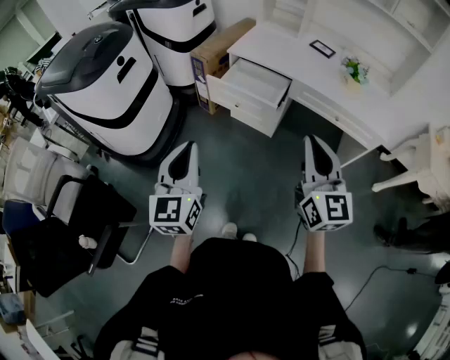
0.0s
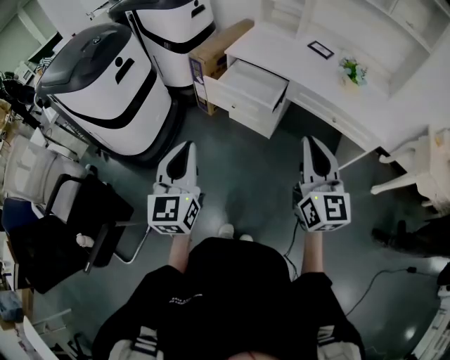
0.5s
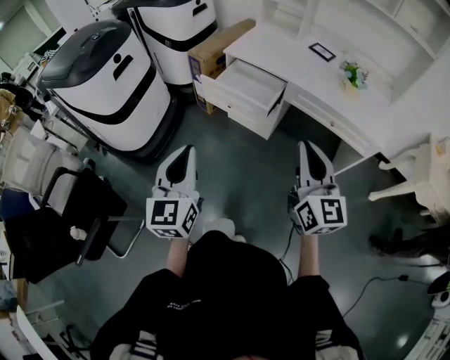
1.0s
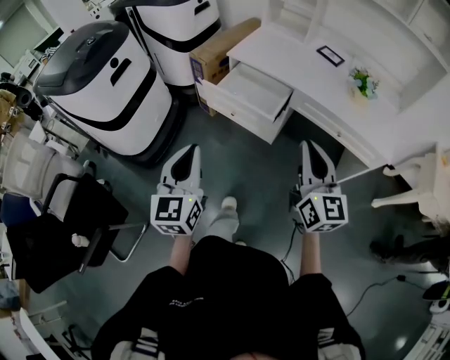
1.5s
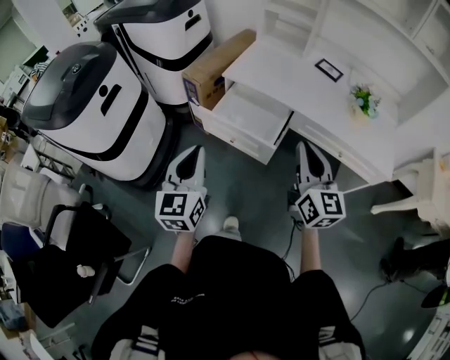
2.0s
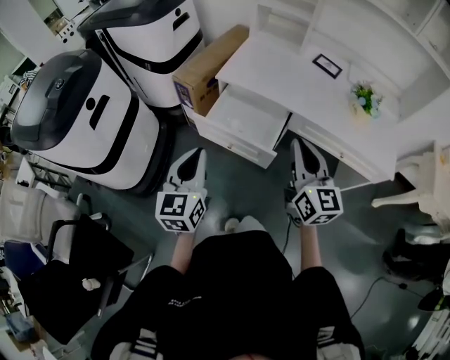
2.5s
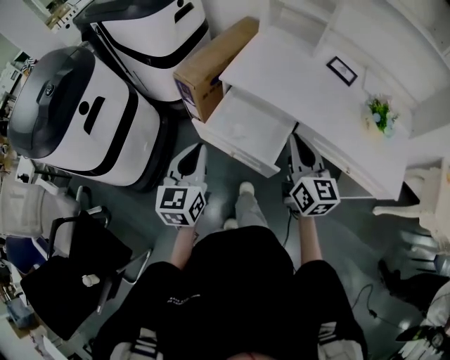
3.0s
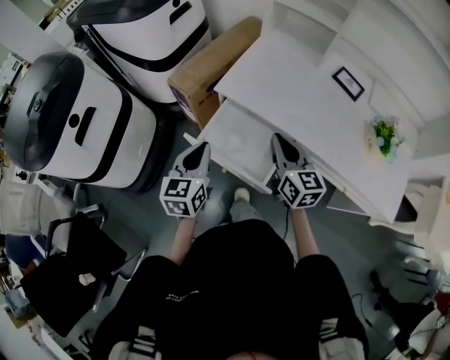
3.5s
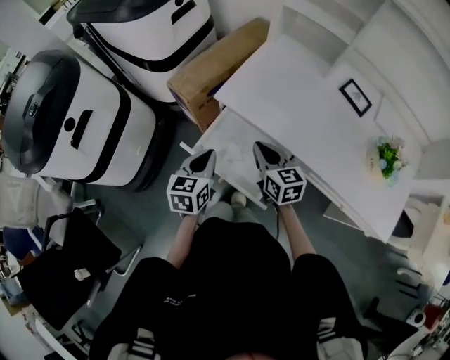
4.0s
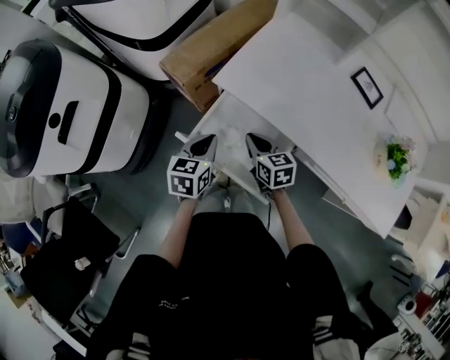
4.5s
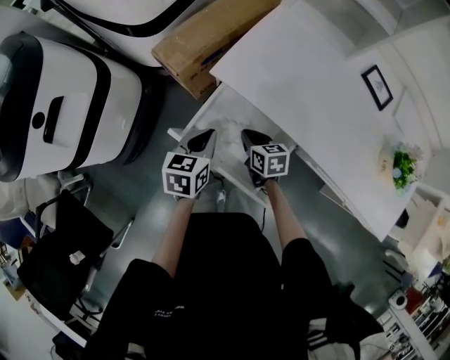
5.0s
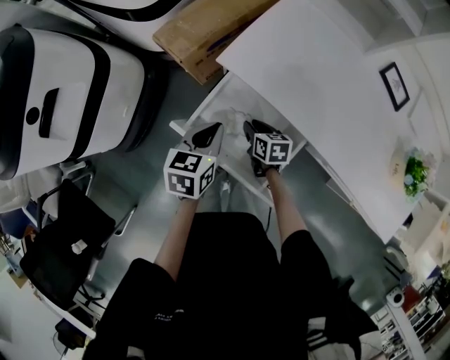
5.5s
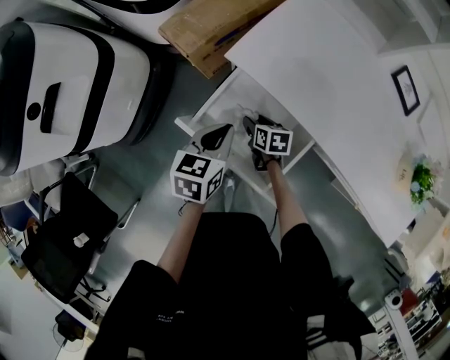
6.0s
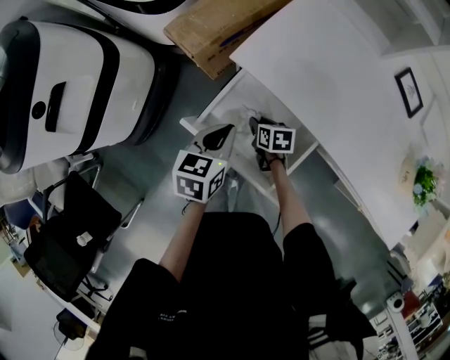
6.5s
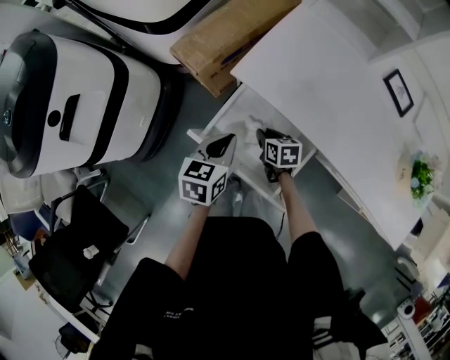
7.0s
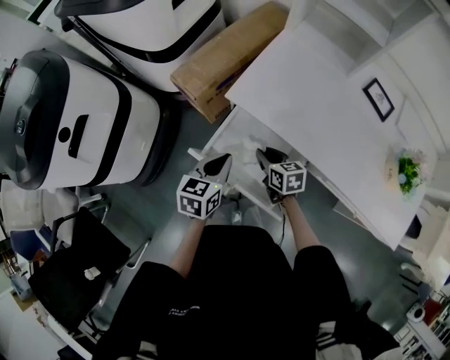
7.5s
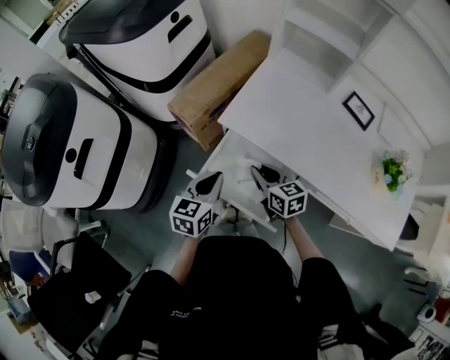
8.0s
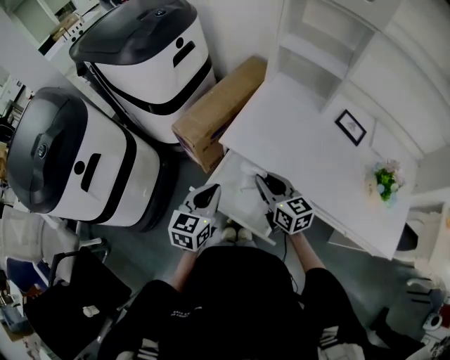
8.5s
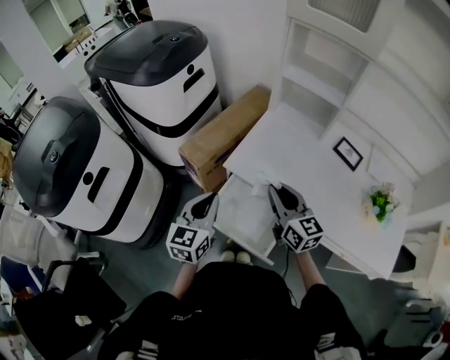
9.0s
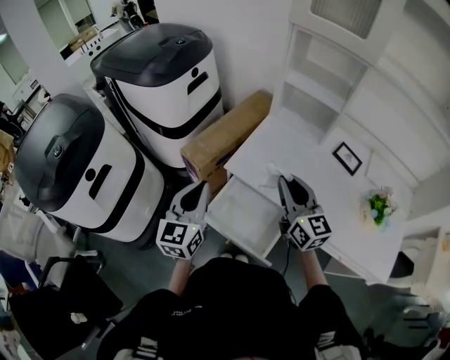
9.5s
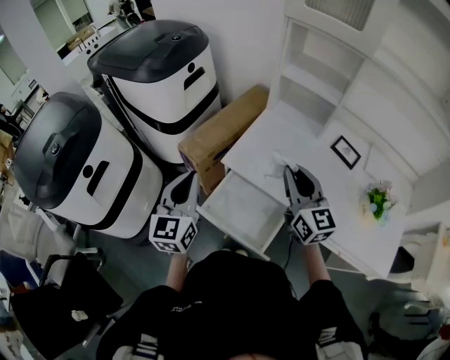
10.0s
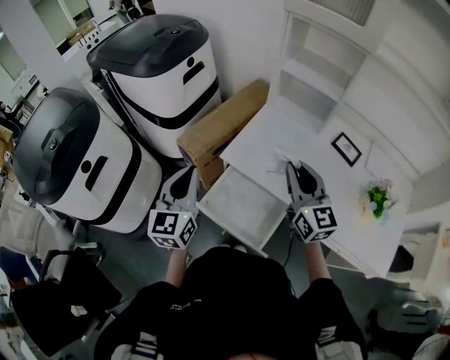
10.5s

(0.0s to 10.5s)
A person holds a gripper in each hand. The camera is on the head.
0.0s - 2.0s: The grippers both shift forward by approximately 20 cm.
2.0s - 4.0s: Both grippers move forward and downward, about 35 cm. The left gripper rotates about 30 degrees. The right gripper changes its angle by about 30 degrees.
4.0s - 6.5s: The right gripper moves downward, some 30 cm, tilts its fingers some 30 degrees downward, and opens, then closes once more; the left gripper goes roughly 10 cm downward.
6.5s - 8.5s: The left gripper heads upward, covering roughly 15 cm, and changes its angle by roughly 20 degrees. Meanwhile the right gripper shifts approximately 30 cm upward, and points its fingers roughly 40 degrees further upward.
8.5s - 10.5s: The left gripper moves upward, roughly 15 cm, and swivels approximately 30 degrees. The right gripper shifts about 20 cm upward and to the right, and changes its angle by approximately 30 degrees.

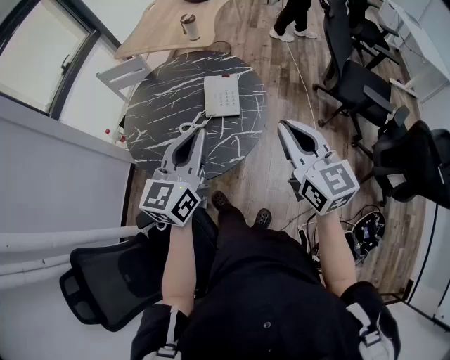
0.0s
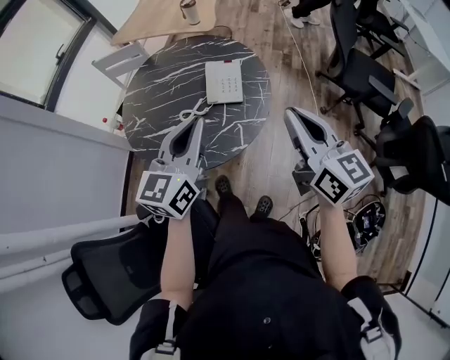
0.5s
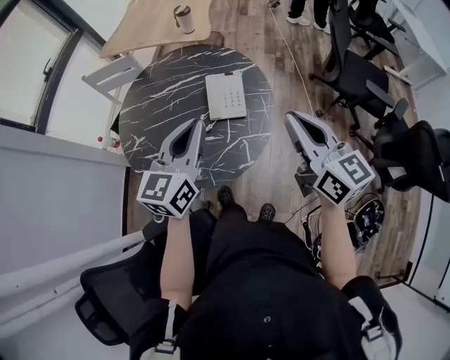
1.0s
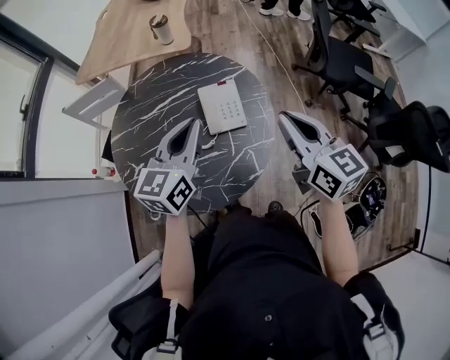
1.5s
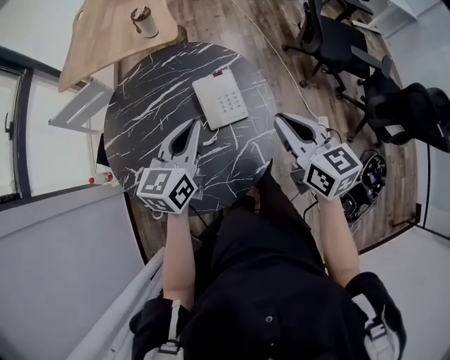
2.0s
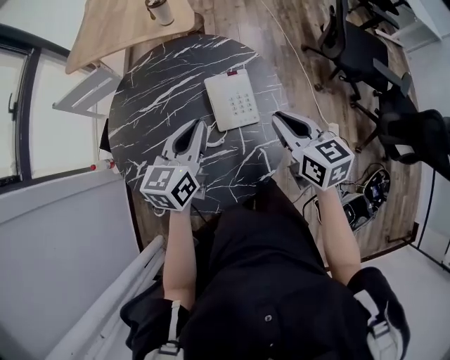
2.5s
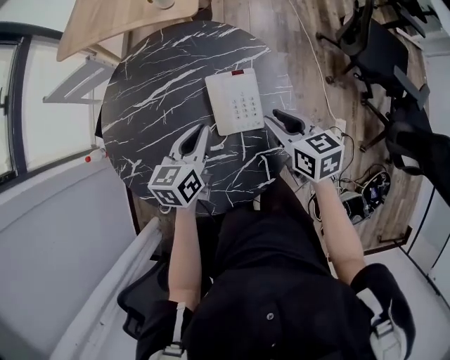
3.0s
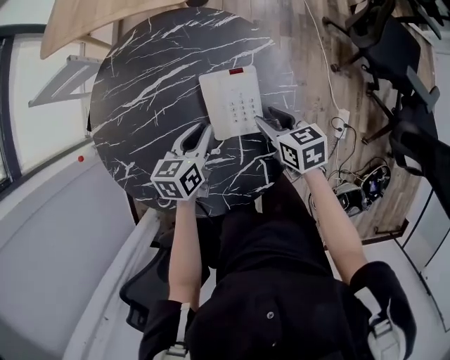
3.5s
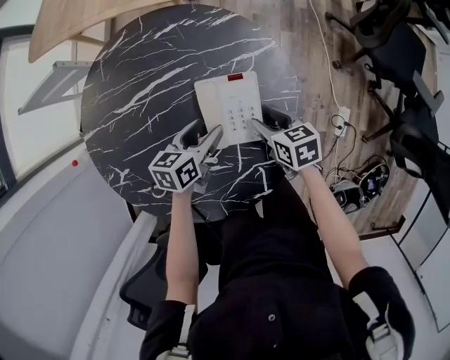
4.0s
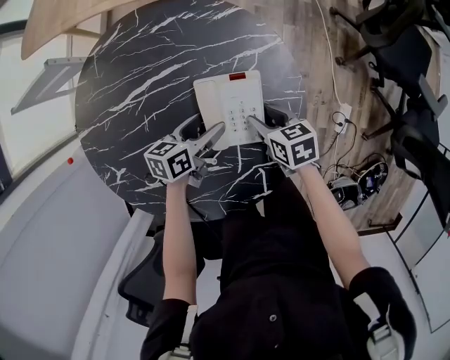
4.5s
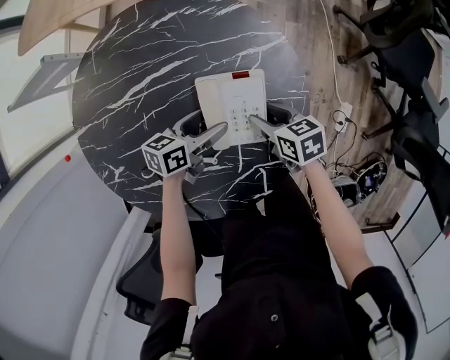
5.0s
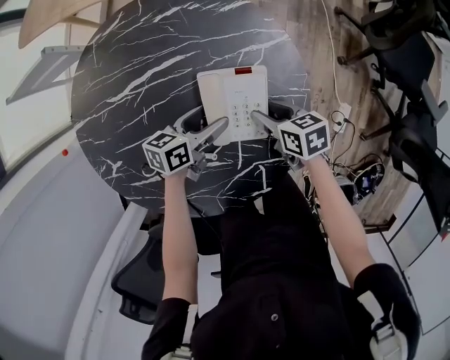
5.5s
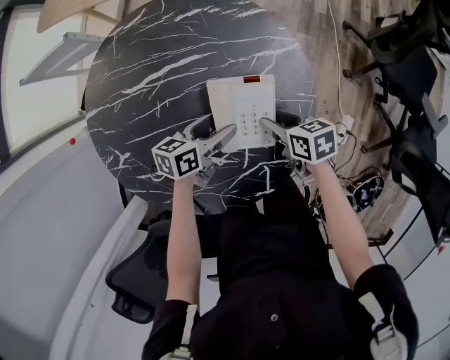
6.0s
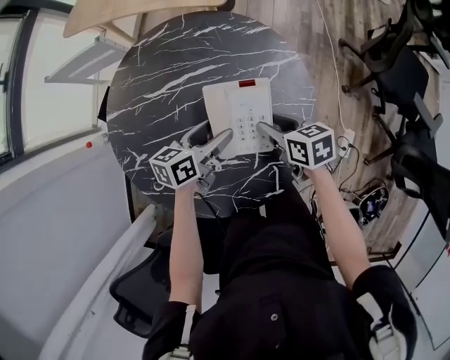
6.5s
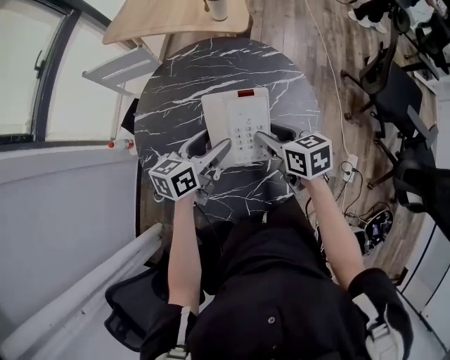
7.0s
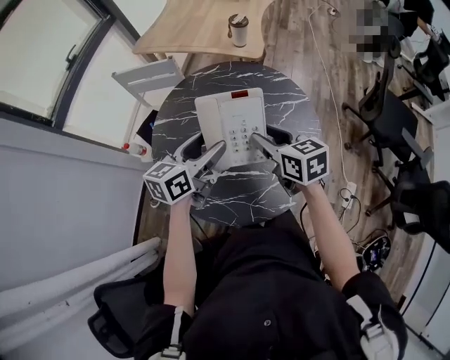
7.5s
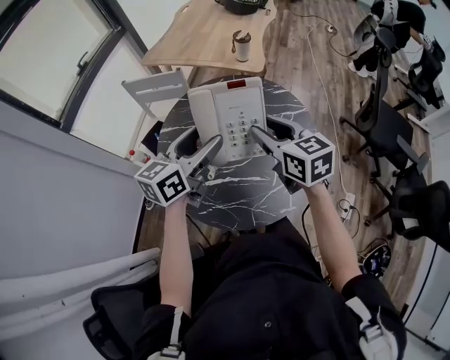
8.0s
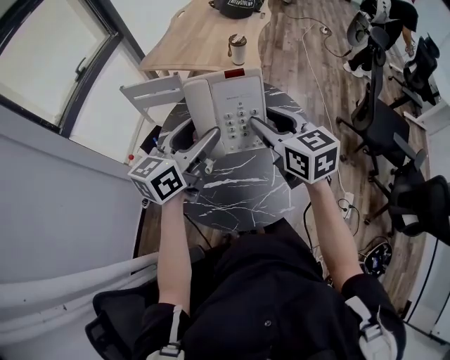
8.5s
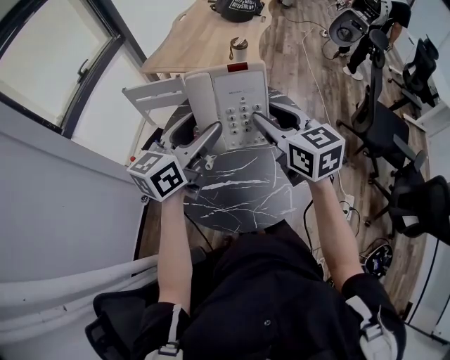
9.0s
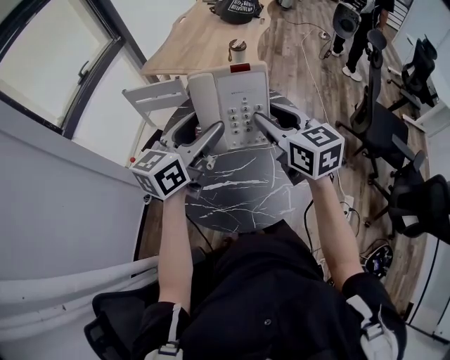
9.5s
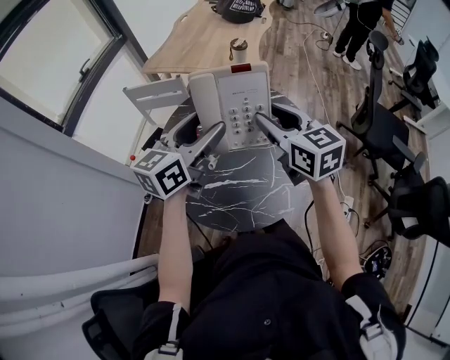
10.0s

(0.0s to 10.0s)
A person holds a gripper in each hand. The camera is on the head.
0.0s - 2.0s: Both grippers travel together forward, to the left and downward, about 25 cm. The right gripper swivels approximately 20 degrees, while the left gripper changes its angle by roughly 20 degrees.
2.0s - 4.0s: The left gripper heads downward, covering approximately 30 cm, changes its angle by approximately 40 degrees, and opens its fingers; the right gripper travels downward and forward by some 35 cm, points its fingers roughly 30 degrees further downward, and opens its fingers.
4.0s - 6.0s: The grippers stay close to where they were, moving slightly.
6.0s - 8.0s: The grippers both shift upward and to the left by roughly 40 cm. The right gripper swivels approximately 40 degrees. The left gripper turns by approximately 40 degrees.
8.0s - 10.0s: The two grippers go approximately 5 cm upward.

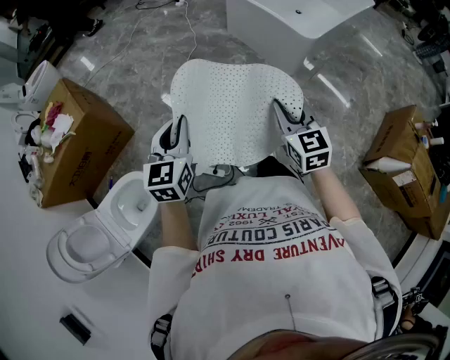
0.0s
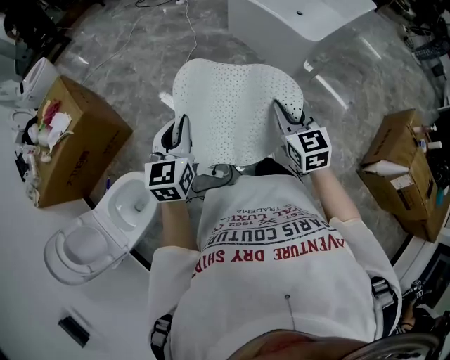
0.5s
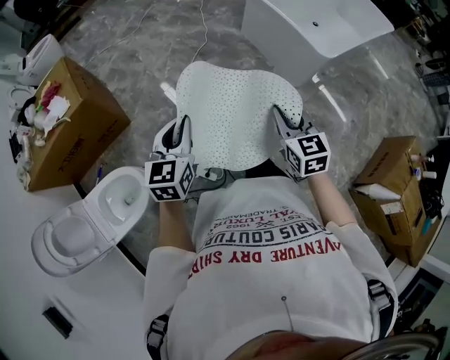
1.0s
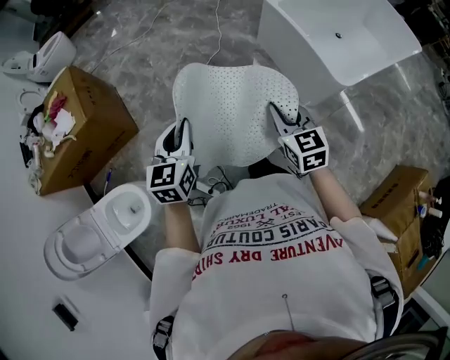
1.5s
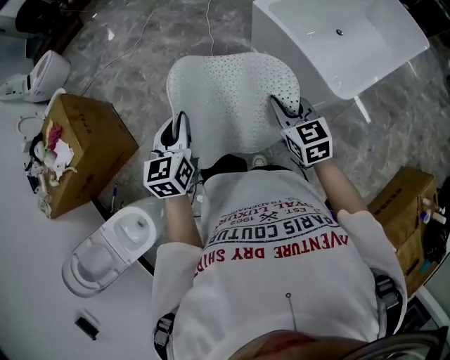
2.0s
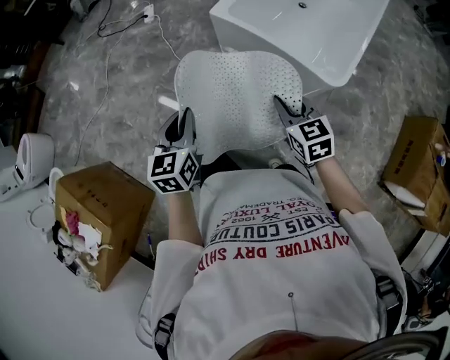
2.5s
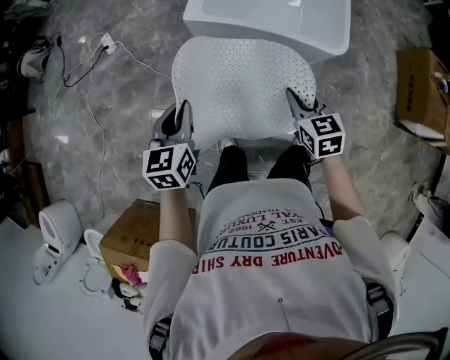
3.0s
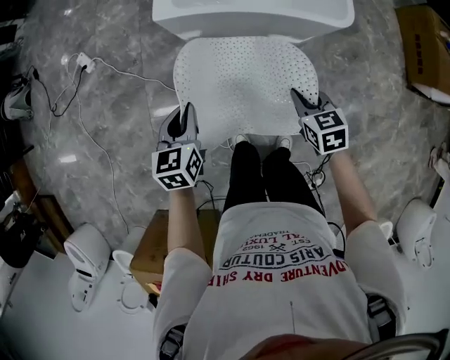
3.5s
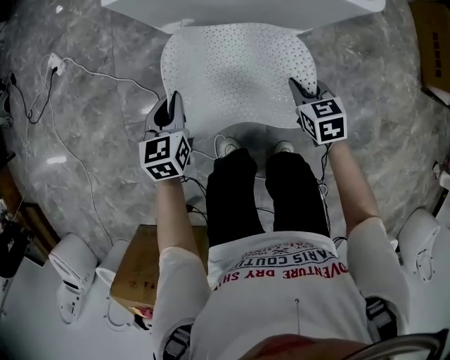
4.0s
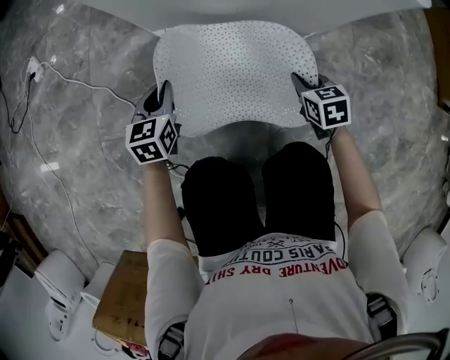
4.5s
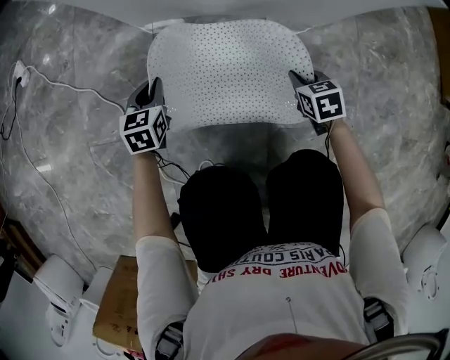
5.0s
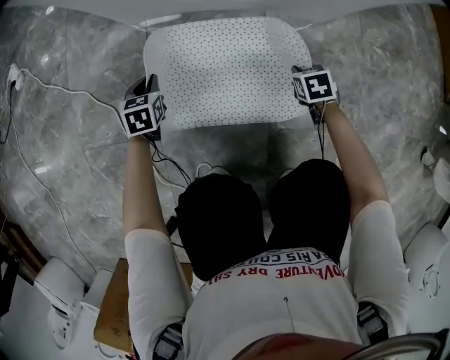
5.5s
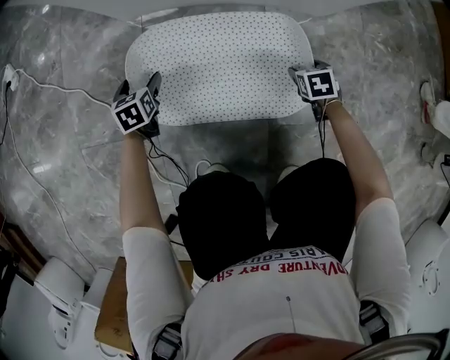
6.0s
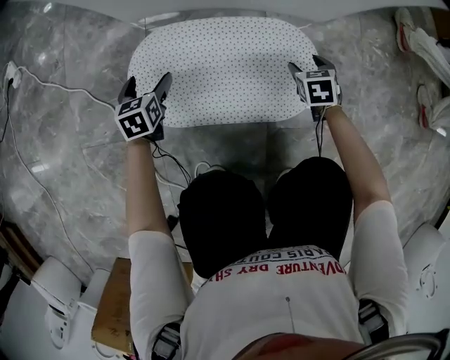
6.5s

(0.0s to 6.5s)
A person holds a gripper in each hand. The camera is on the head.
0.0s - 2.0s: The grippers both shift forward by some 40 cm.
2.0s - 4.5s: The two grippers go some 70 cm downward. The right gripper rotates about 60 degrees. Meanwhile the left gripper turns by about 60 degrees.
4.5s - 6.5s: The left gripper shifts some 15 cm downward, and opens up; the right gripper is displaced downward and to the right by some 15 cm, and opens.
